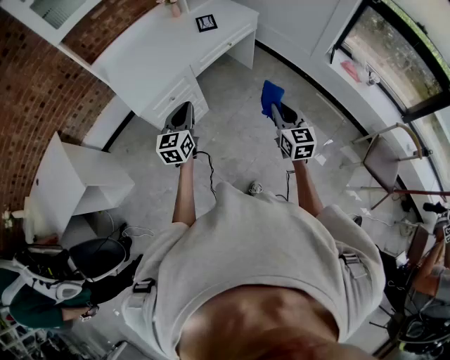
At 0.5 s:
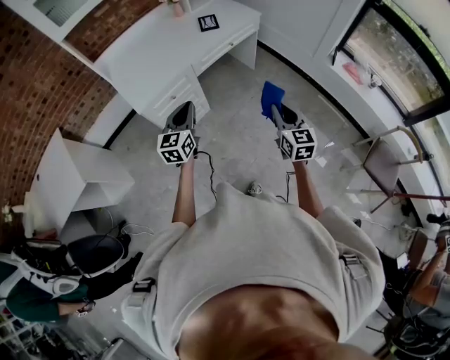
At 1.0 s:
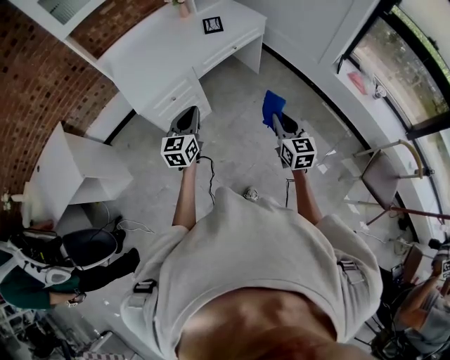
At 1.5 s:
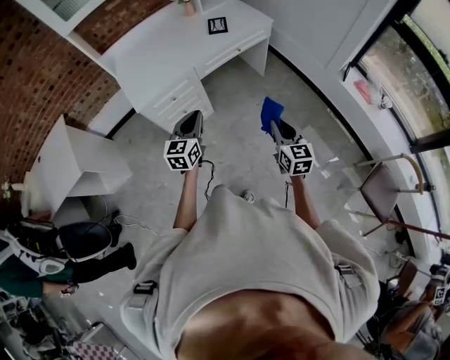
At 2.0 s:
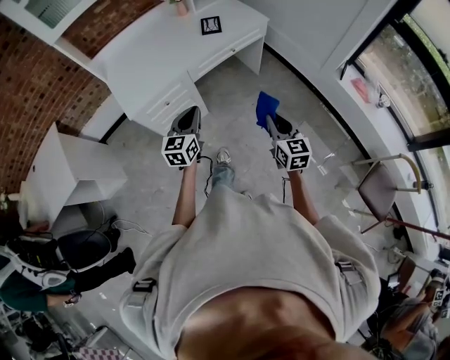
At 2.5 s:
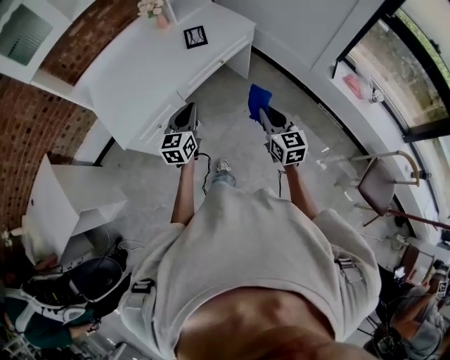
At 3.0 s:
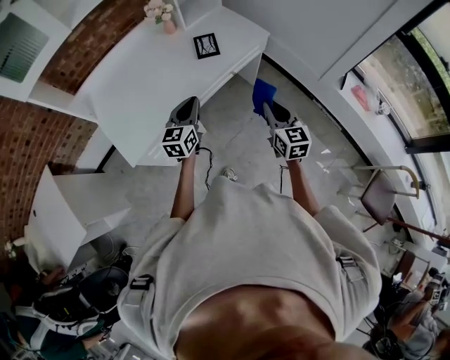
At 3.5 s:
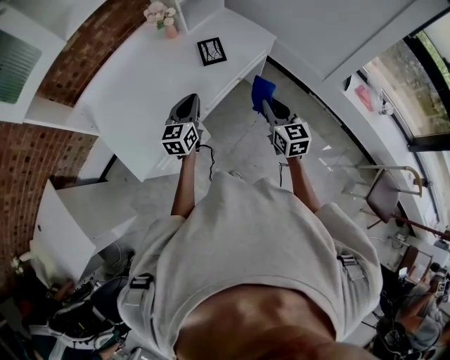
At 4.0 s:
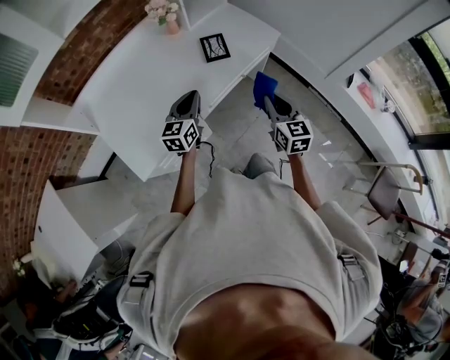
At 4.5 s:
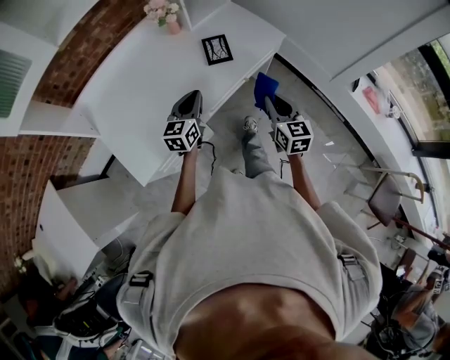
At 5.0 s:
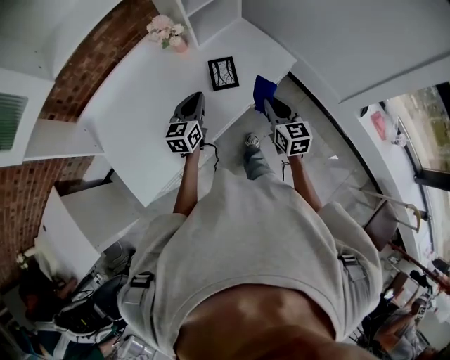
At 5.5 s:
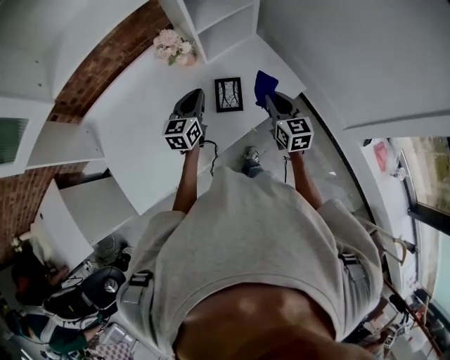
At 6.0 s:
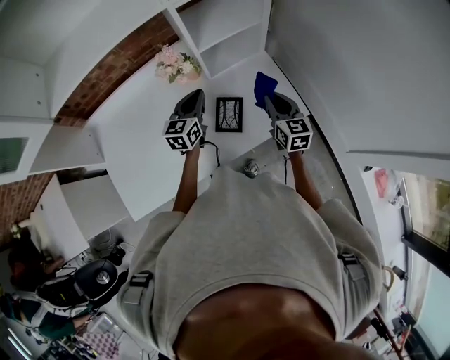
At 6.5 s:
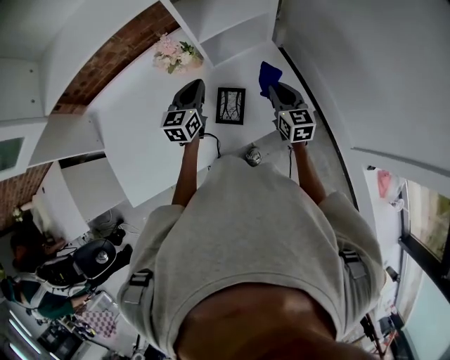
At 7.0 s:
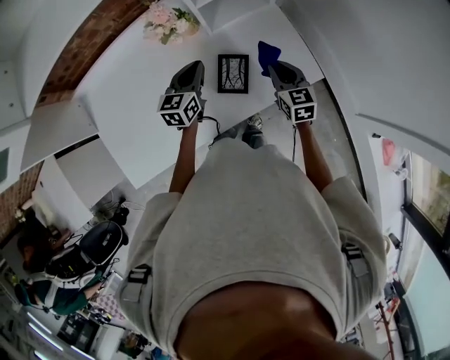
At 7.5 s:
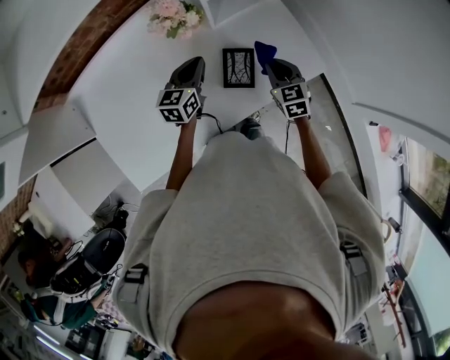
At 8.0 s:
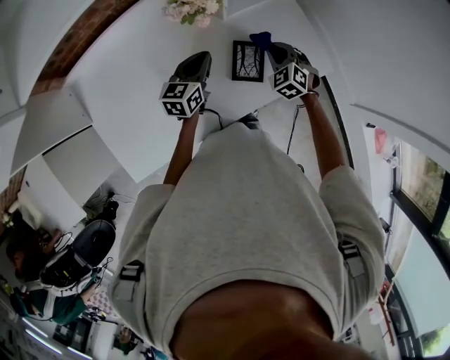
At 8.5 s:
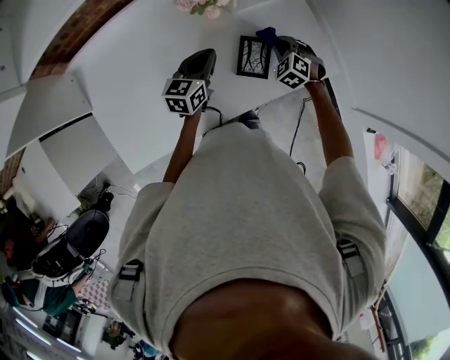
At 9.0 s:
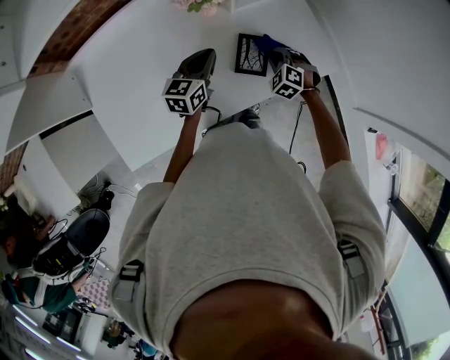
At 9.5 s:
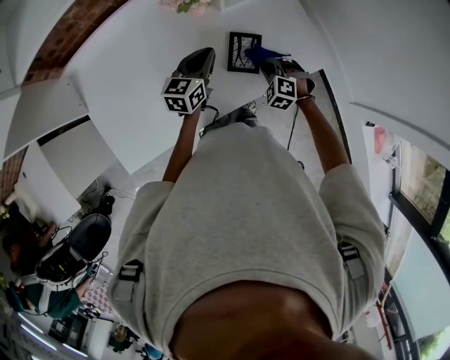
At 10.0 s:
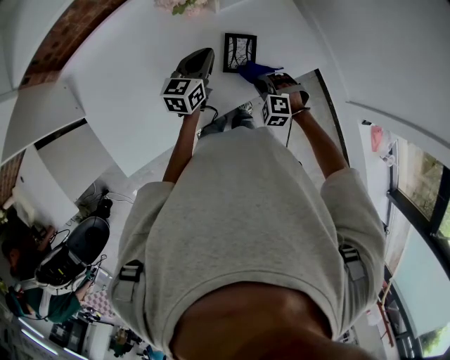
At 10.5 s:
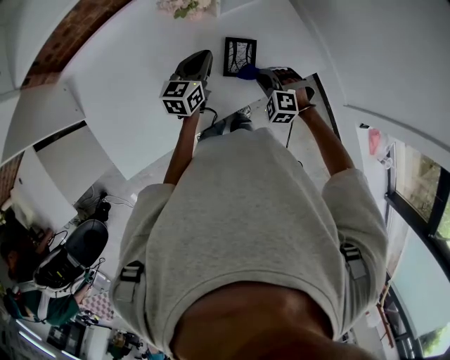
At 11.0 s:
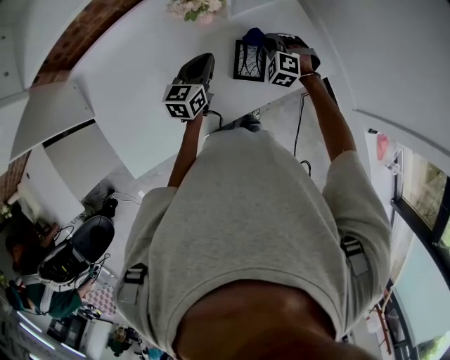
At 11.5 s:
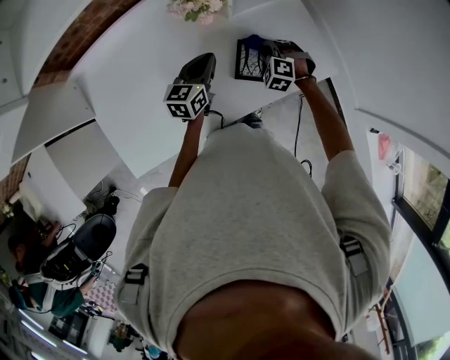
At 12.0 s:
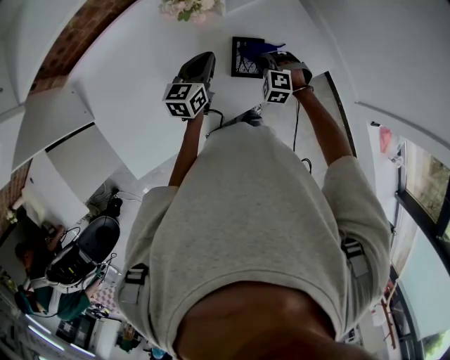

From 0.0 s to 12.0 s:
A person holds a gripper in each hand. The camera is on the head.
From 0.0 s to 2.0 s: The left gripper travels to the right and forward by roughly 10 cm; the right gripper moves forward, about 10 cm.
From 2.0 s to 4.0 s: The right gripper travels forward and to the left by about 35 cm. The left gripper shifts roughly 35 cm forward.
From 4.0 s to 6.0 s: Both grippers move forward, approximately 40 cm.
From 6.0 s to 8.0 s: Both grippers travel together downward and to the left, roughly 15 cm. The right gripper rolls counterclockwise, seen from behind, by about 50 degrees.
From 8.0 s to 10.0 s: The right gripper moves backward, roughly 15 cm, and changes its angle by roughly 30 degrees.
From 10.0 s to 12.0 s: The right gripper travels forward by some 10 cm.

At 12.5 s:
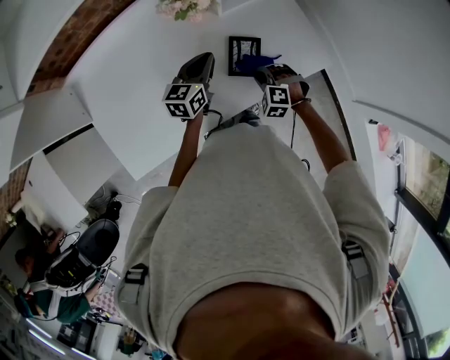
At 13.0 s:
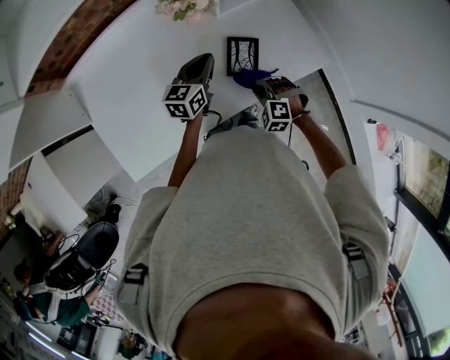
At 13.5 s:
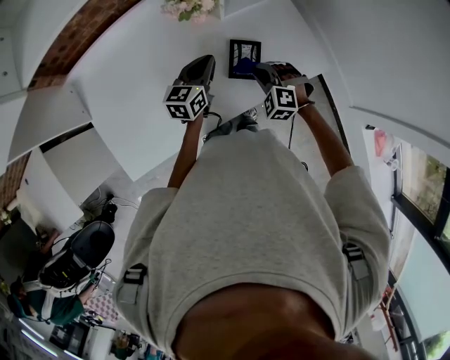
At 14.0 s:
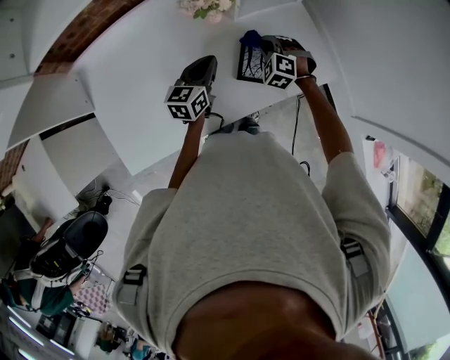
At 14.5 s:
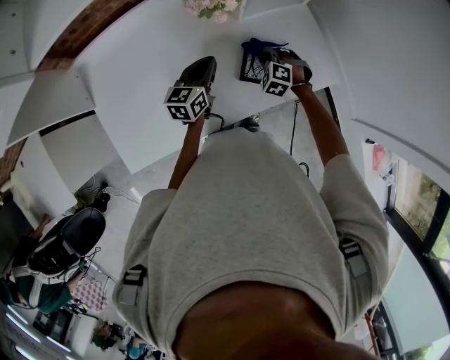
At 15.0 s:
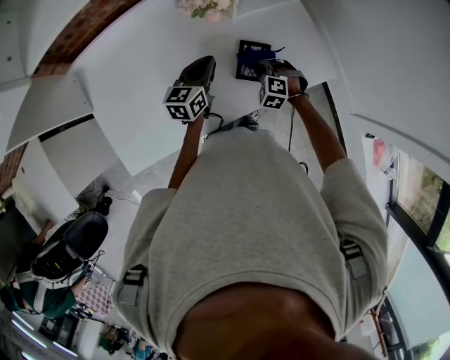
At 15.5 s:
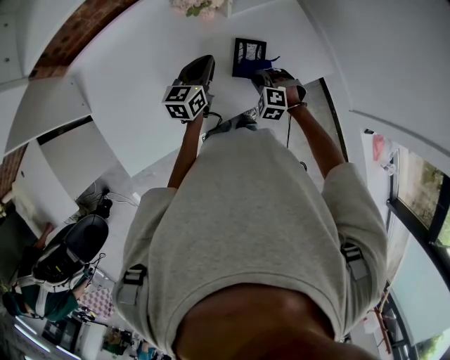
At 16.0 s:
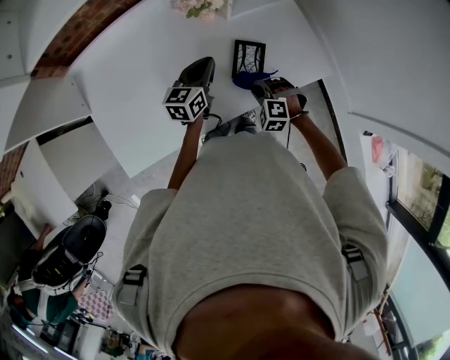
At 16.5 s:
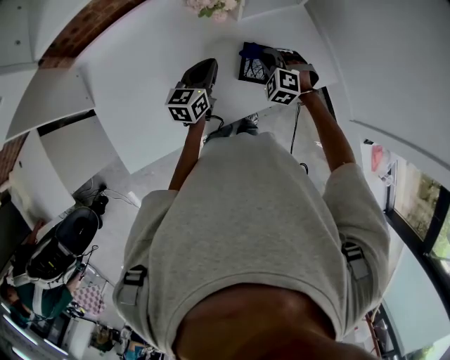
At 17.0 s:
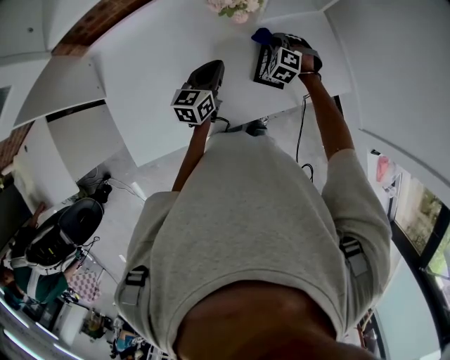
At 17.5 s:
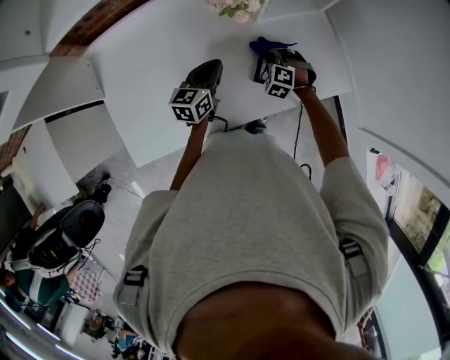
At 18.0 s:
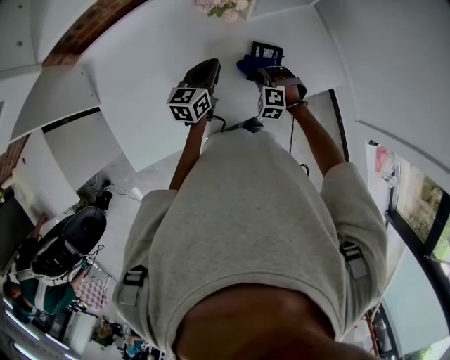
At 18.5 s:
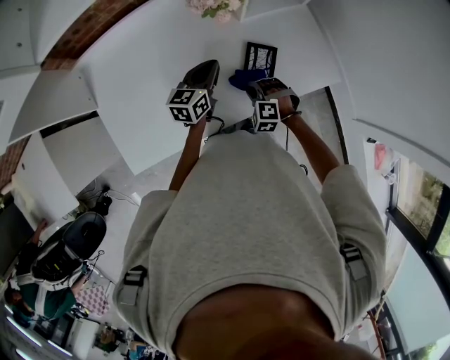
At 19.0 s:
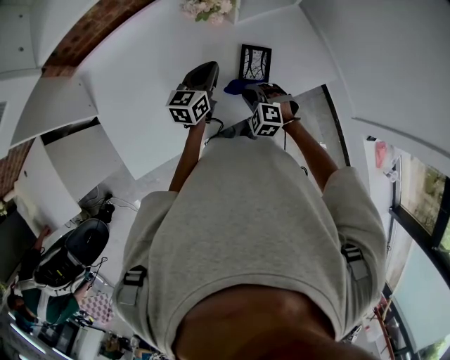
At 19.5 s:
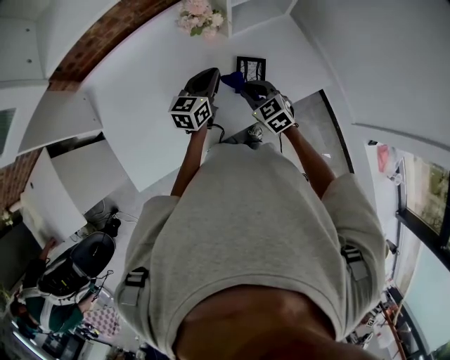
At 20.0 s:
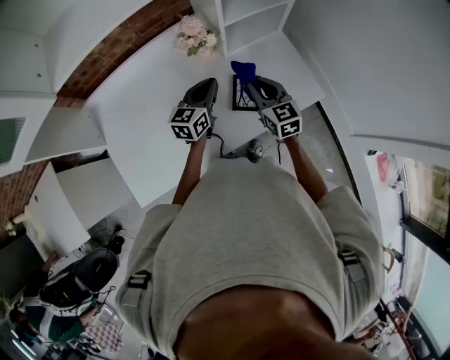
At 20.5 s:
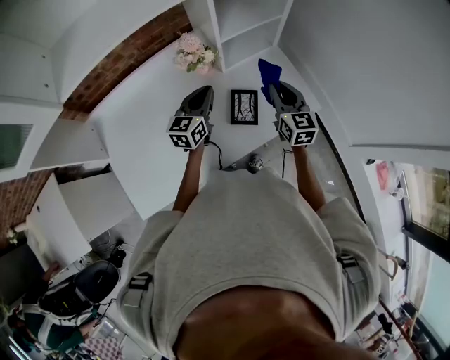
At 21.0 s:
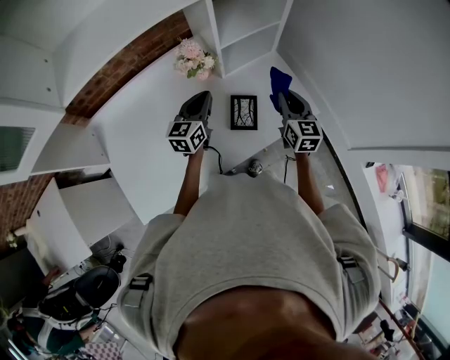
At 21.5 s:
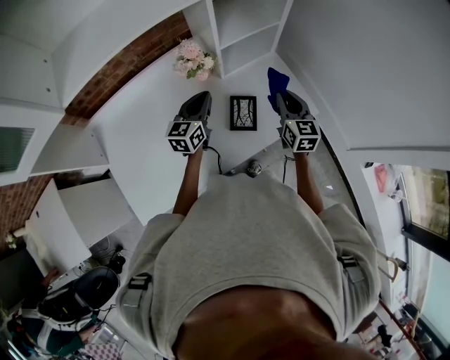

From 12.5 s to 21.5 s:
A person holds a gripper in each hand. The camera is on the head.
From 12.5 s to 14.5 s: The right gripper moves forward, approximately 10 cm.
From 14.5 s to 17.0 s: The right gripper travels backward and back again, some 15 cm each way.
From 17.0 s to 19.5 s: The right gripper shifts about 15 cm backward and upward, and rotates around the line of its fingers by roughly 40 degrees, clockwise from behind, while the left gripper shifts roughly 5 cm to the right.
From 19.5 s to 21.5 s: The right gripper goes approximately 20 cm to the right, upward and forward, and swivels roughly 40 degrees. The left gripper shifts about 5 cm upward.

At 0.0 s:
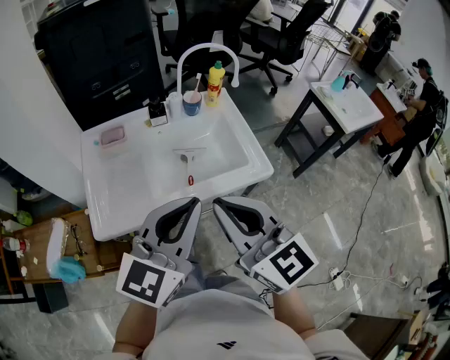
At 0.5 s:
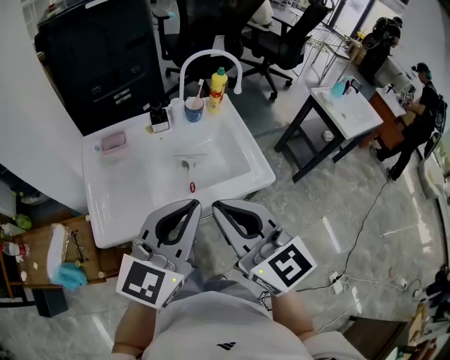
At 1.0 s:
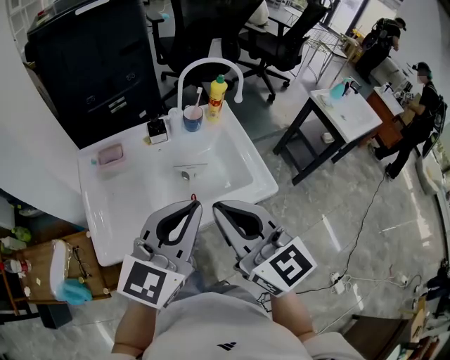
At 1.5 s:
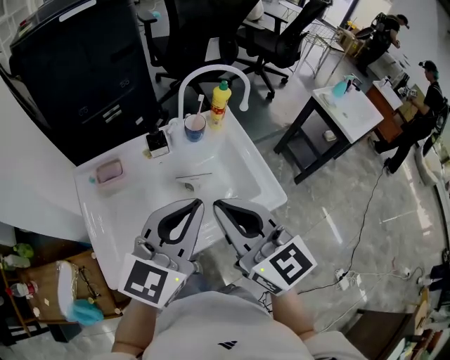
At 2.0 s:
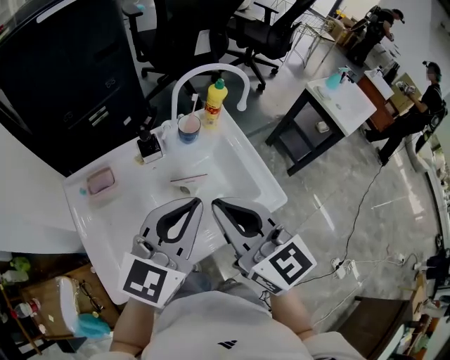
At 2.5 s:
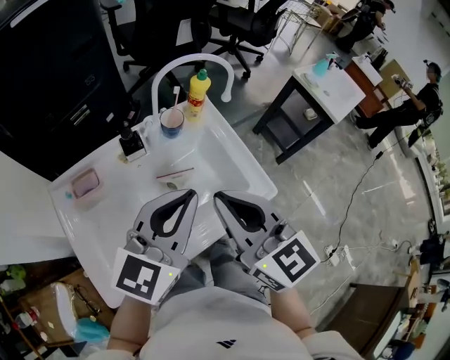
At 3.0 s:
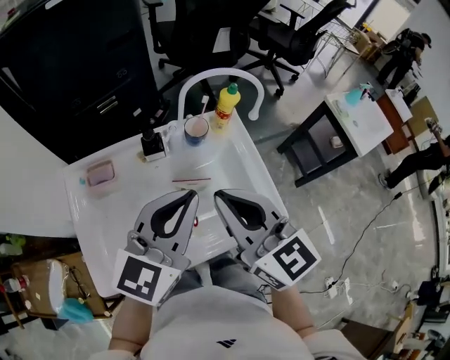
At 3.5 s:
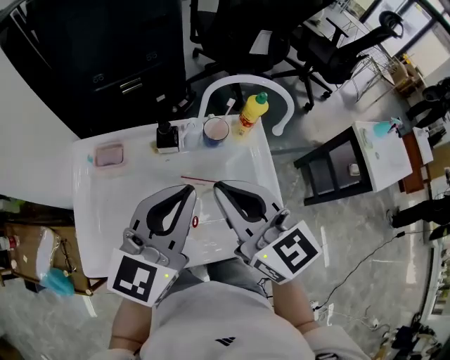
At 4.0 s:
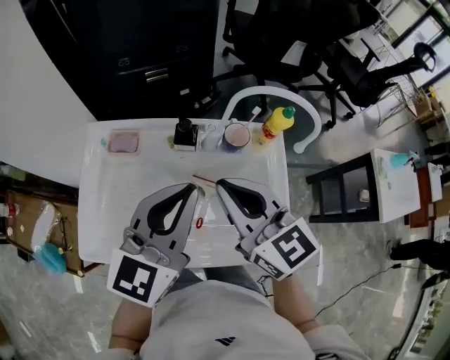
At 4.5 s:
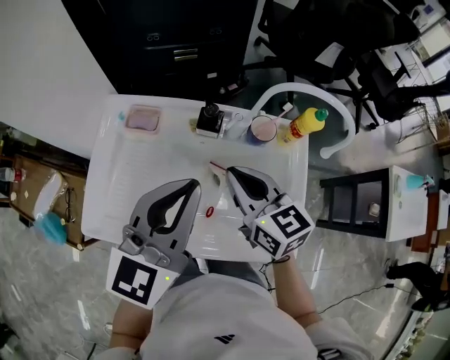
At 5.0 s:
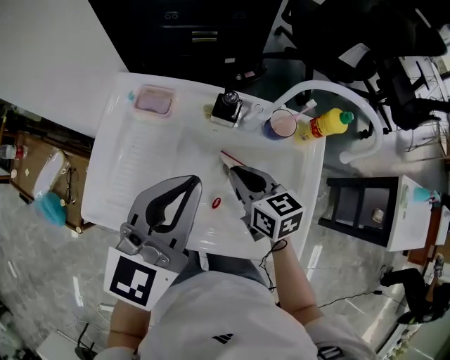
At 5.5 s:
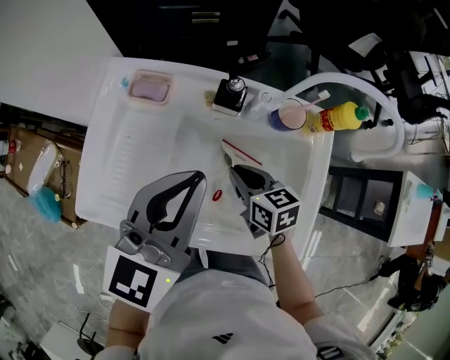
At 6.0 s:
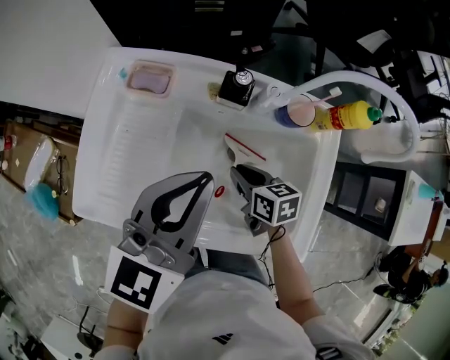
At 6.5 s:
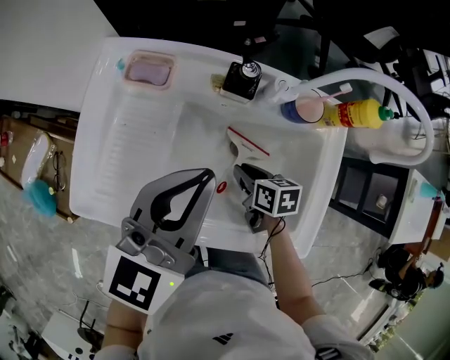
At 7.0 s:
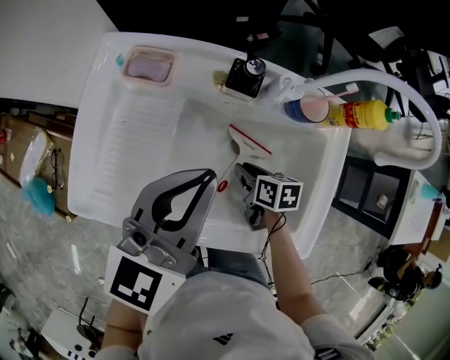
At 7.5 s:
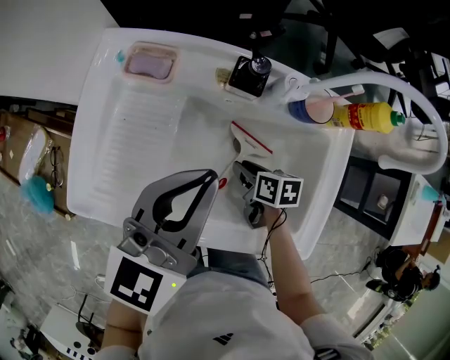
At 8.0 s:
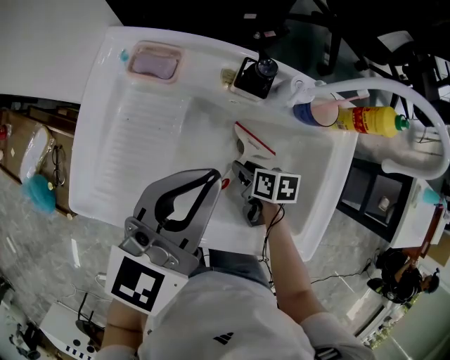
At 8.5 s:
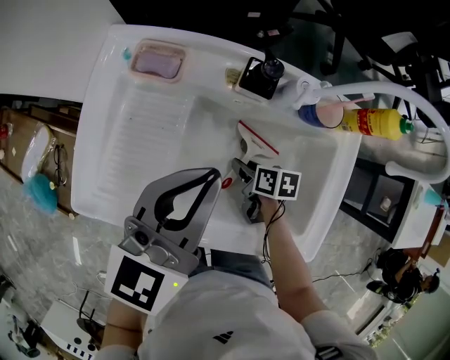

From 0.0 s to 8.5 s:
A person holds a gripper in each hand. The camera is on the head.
From 0.0 s to 2.0 s: The two grippers go about 20 cm forward.
From 2.0 s to 4.0 s: The right gripper ends up approximately 10 cm from where it was, and changes its angle by about 30 degrees. Meanwhile the left gripper shifts by about 10 cm, and swivels about 30 degrees.
From 4.0 s to 6.5 s: The right gripper travels downward by some 35 cm, and angles its fingers downward, by about 40 degrees. The left gripper shifts approximately 10 cm downward.
From 6.5 s to 8.5 s: The right gripper is displaced downward by approximately 5 cm.
